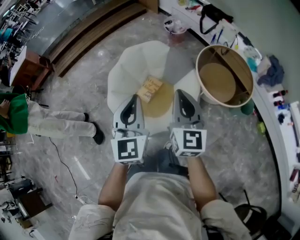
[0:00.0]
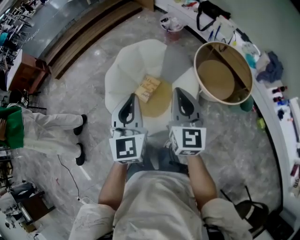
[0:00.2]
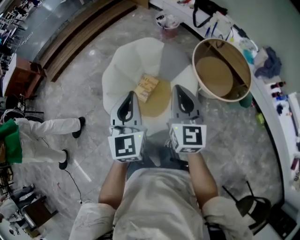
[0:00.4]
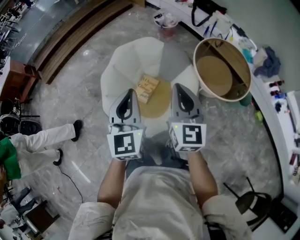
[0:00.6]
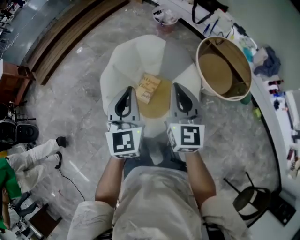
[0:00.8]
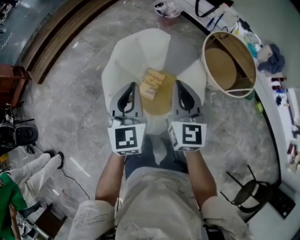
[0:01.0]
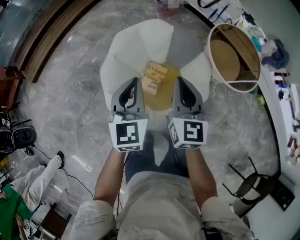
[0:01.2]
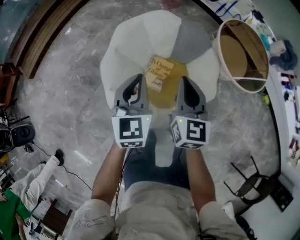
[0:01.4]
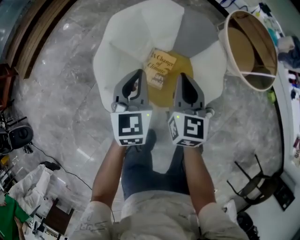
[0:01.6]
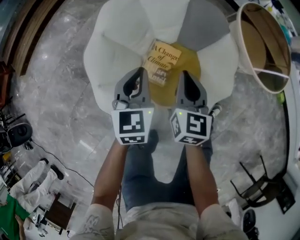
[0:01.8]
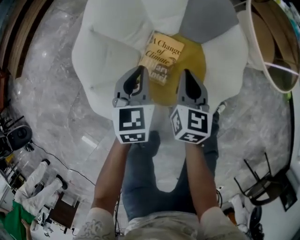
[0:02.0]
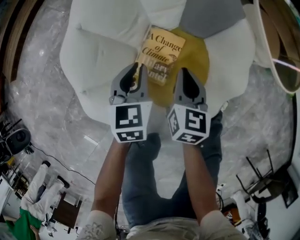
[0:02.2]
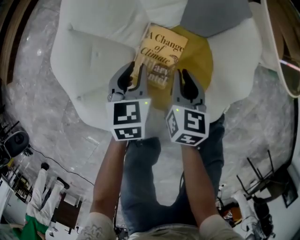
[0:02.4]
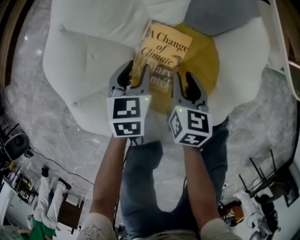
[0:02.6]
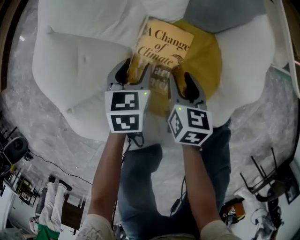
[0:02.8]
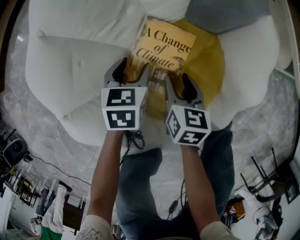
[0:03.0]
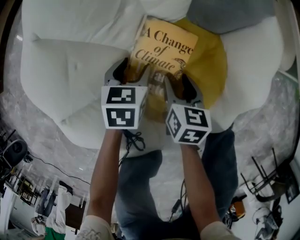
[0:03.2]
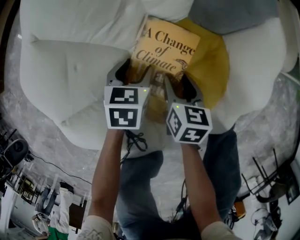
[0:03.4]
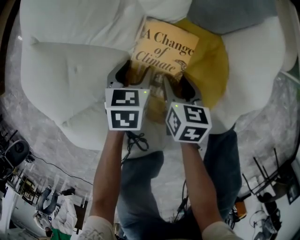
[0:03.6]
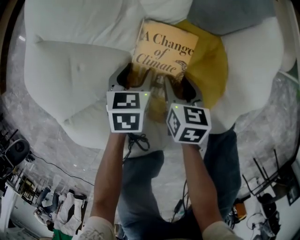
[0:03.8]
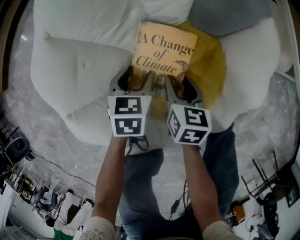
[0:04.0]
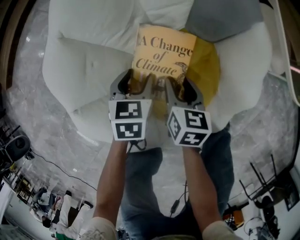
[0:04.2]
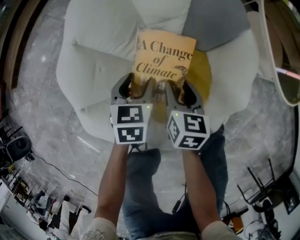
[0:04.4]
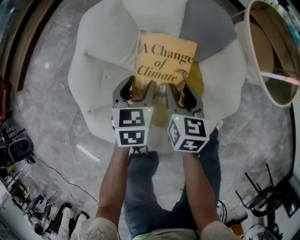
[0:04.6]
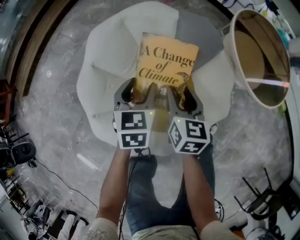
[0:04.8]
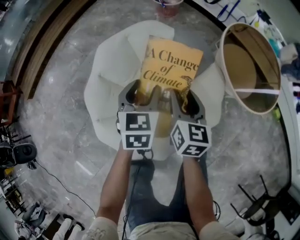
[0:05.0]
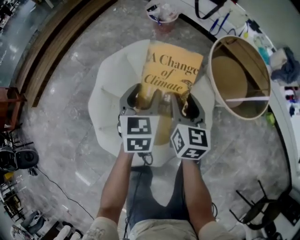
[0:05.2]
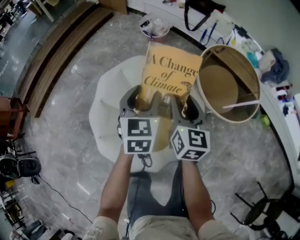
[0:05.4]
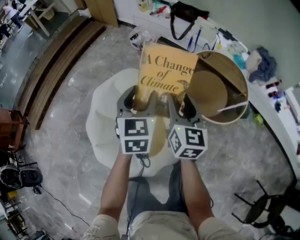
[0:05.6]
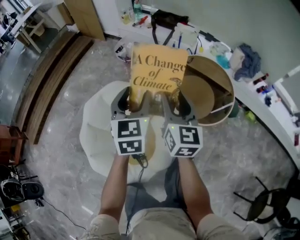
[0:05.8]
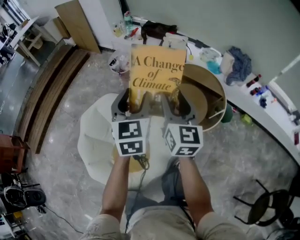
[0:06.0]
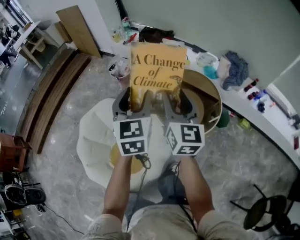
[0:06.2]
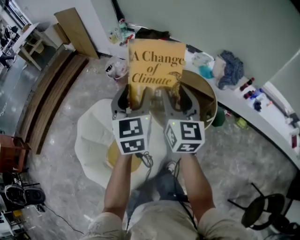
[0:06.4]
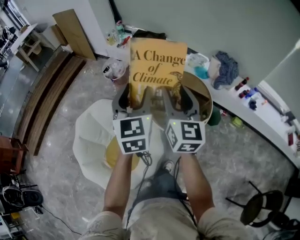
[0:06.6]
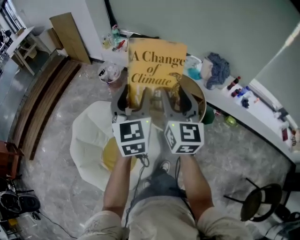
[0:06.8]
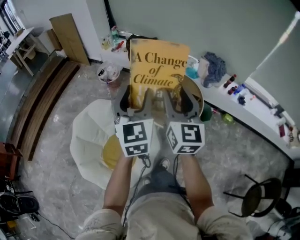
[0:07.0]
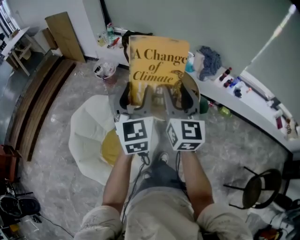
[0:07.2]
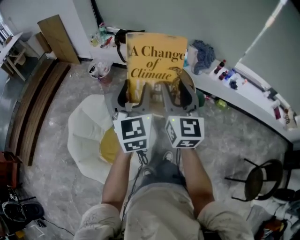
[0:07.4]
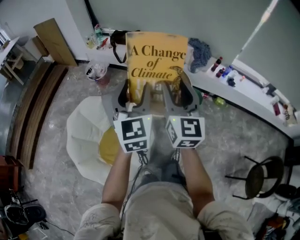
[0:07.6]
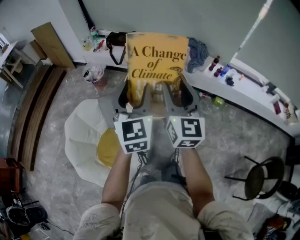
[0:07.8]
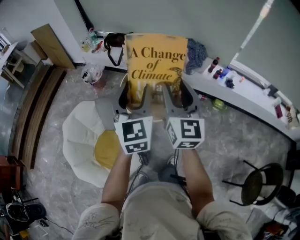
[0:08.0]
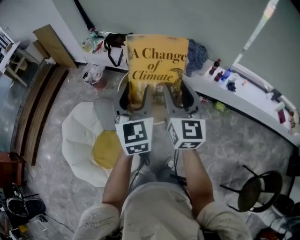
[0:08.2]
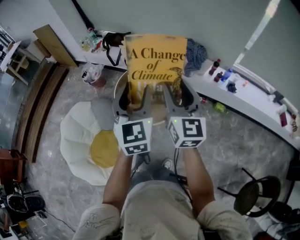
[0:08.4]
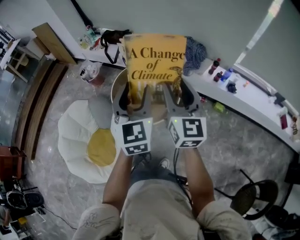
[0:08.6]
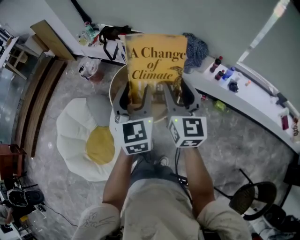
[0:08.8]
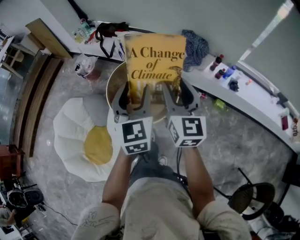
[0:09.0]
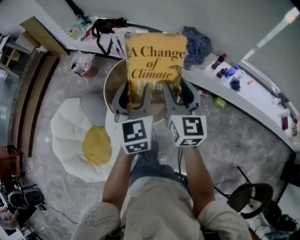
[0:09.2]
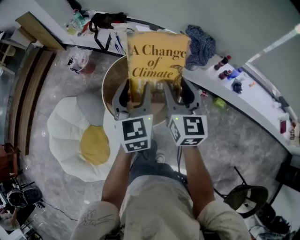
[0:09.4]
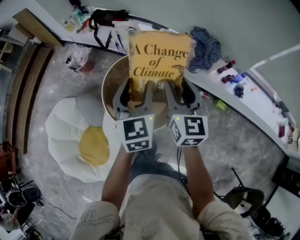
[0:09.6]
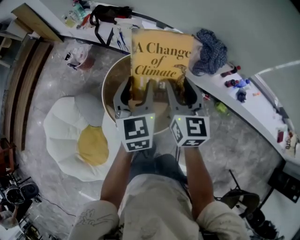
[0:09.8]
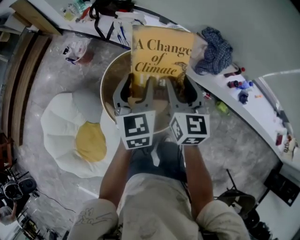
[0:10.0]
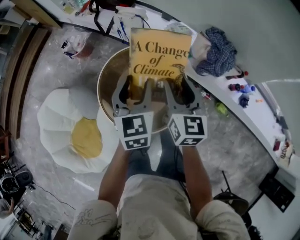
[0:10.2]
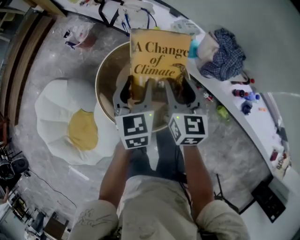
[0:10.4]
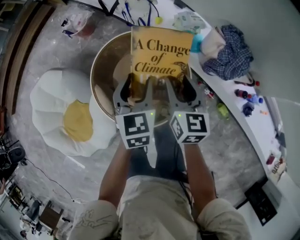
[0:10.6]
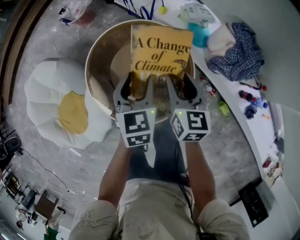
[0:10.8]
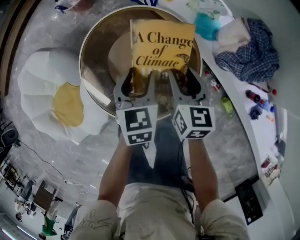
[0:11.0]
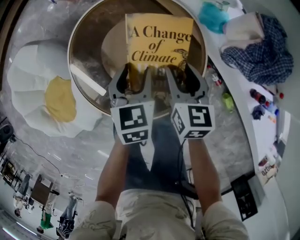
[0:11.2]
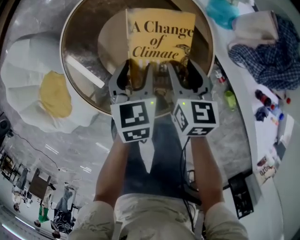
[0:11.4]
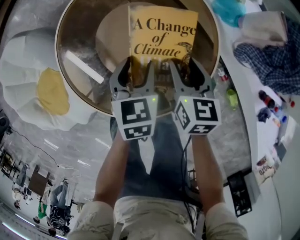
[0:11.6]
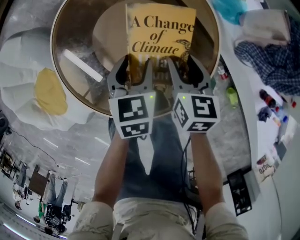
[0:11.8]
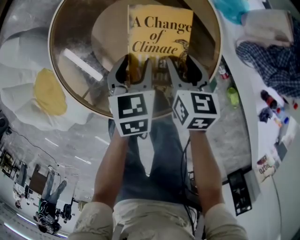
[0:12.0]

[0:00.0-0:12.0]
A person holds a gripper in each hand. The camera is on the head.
0:00.0 to 0:01.6: The right gripper heads downward, to the left and forward, covering approximately 40 cm, and rotates about 20 degrees; the left gripper heads downward, forward and to the left, covering some 40 cm, and turns by approximately 20 degrees.
0:01.6 to 0:03.0: Both grippers travel together downward, some 40 cm. The left gripper turns by approximately 30 degrees, and opens; the right gripper turns by approximately 30 degrees, and opens.
0:03.0 to 0:04.4: The grippers both shift upward by roughly 15 cm.
0:04.4 to 0:06.0: The two grippers go roughly 70 cm upward and to the right. The right gripper angles its fingers upward, by approximately 40 degrees. The left gripper tips its fingers upward by some 30 degrees.
0:06.0 to 0:07.6: The left gripper is displaced to the right, upward and backward by approximately 25 cm. The right gripper heads backward, upward and to the right, covering some 25 cm.
0:07.6 to 0:09.0: Both grippers travel together to the right and forward, some 30 cm.
0:09.0 to 0:10.4: Both grippers move forward and downward, about 30 cm. The left gripper swivels about 20 degrees; the right gripper turns by some 20 degrees.
0:10.4 to 0:12.0: The two grippers go approximately 35 cm downward. The left gripper swivels about 30 degrees; the right gripper swivels roughly 30 degrees.

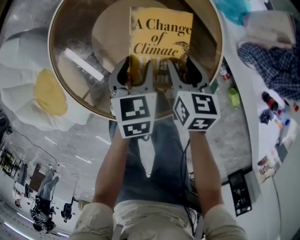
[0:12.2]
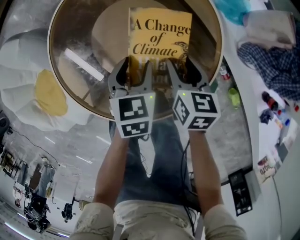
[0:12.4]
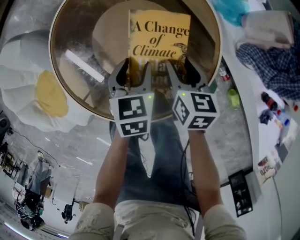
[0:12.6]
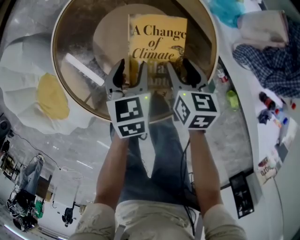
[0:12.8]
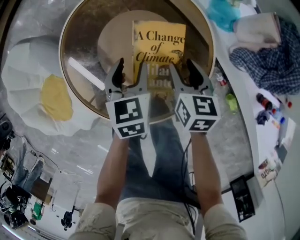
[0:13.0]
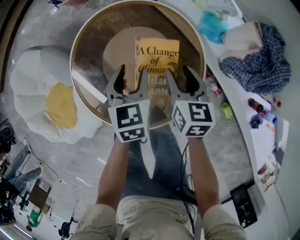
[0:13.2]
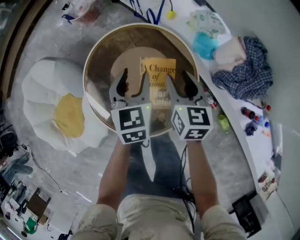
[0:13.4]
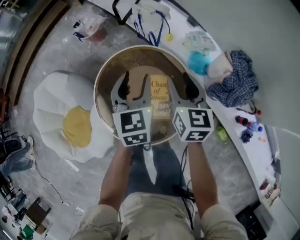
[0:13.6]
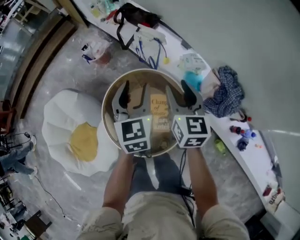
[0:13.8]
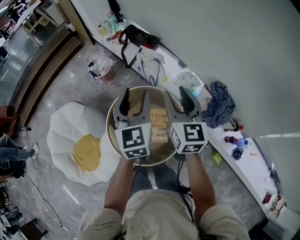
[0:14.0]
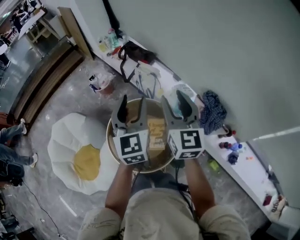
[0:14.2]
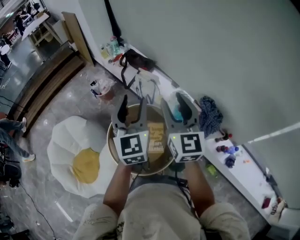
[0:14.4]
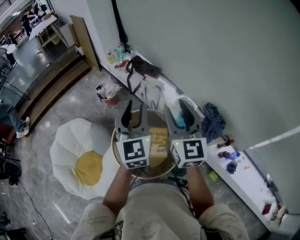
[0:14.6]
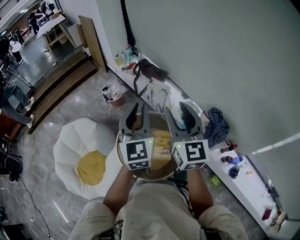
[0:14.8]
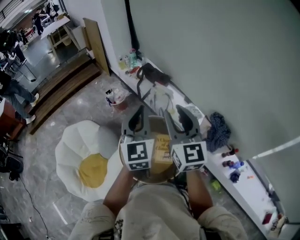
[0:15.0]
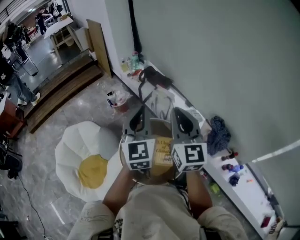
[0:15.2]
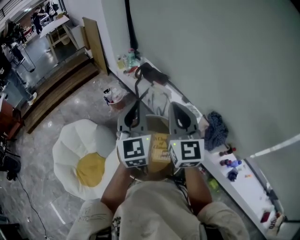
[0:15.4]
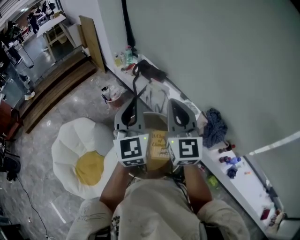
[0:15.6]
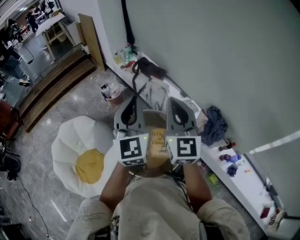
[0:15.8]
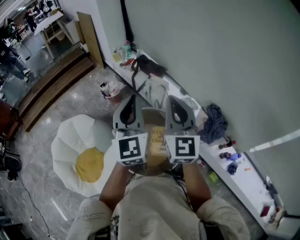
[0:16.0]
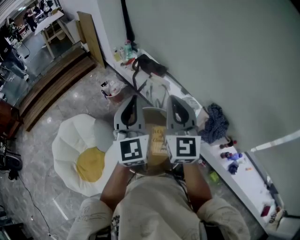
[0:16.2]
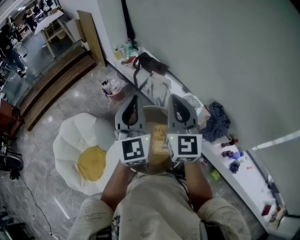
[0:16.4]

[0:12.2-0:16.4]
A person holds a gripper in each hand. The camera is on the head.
0:12.2 to 0:13.6: Both grippers move upward, approximately 30 cm. The right gripper swivels roughly 30 degrees. Meanwhile the left gripper turns by about 30 degrees.
0:13.6 to 0:15.0: Both grippers move upward, roughly 35 cm. The left gripper swivels about 30 degrees, and closes; the right gripper tilts its fingers roughly 30 degrees upward.
0:15.0 to 0:16.4: The right gripper closes its fingers.

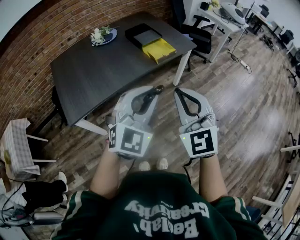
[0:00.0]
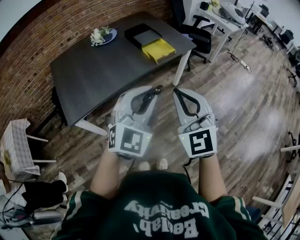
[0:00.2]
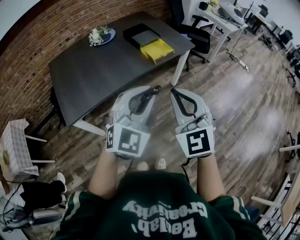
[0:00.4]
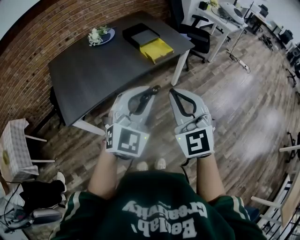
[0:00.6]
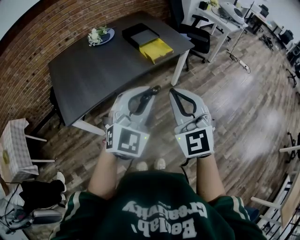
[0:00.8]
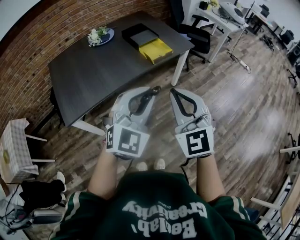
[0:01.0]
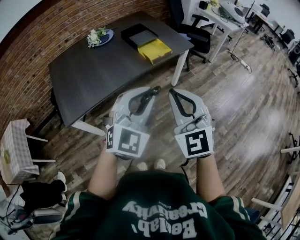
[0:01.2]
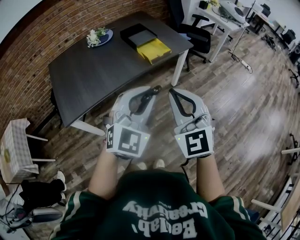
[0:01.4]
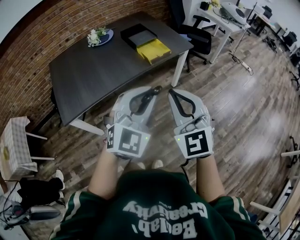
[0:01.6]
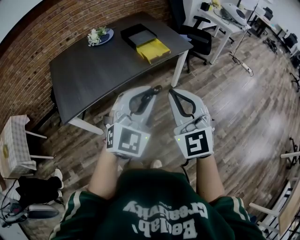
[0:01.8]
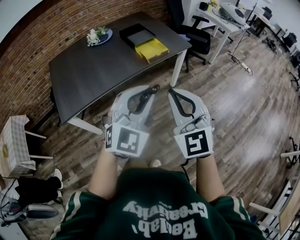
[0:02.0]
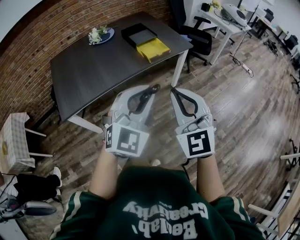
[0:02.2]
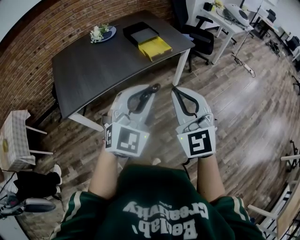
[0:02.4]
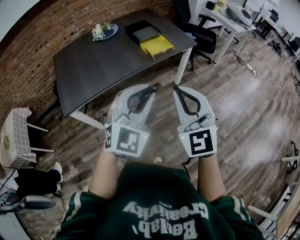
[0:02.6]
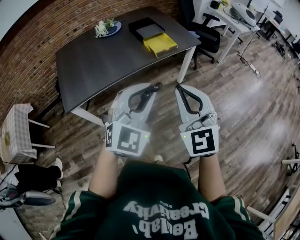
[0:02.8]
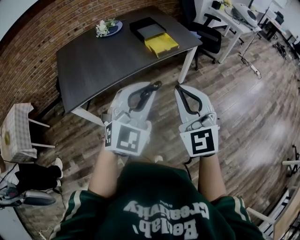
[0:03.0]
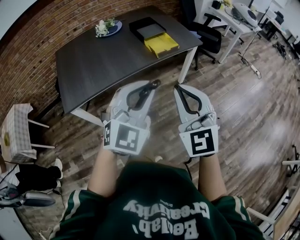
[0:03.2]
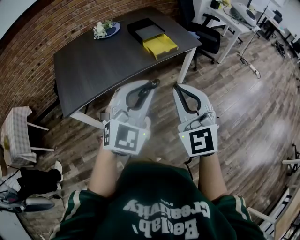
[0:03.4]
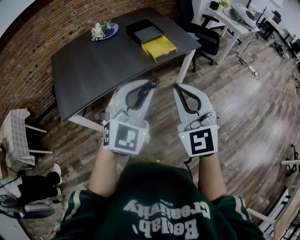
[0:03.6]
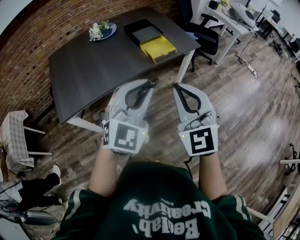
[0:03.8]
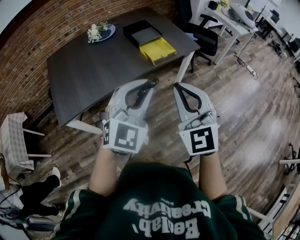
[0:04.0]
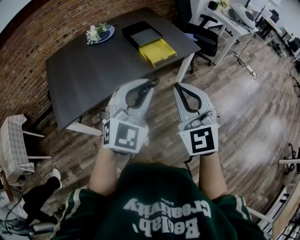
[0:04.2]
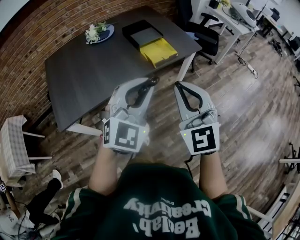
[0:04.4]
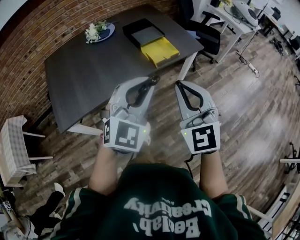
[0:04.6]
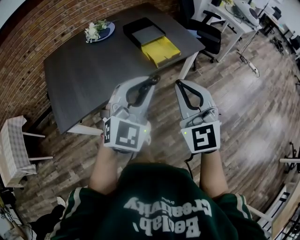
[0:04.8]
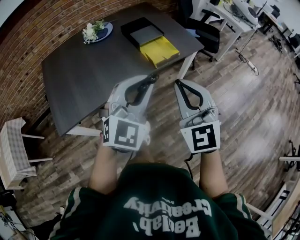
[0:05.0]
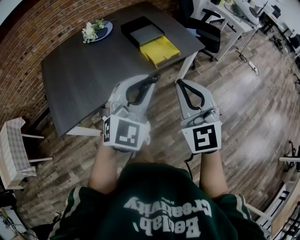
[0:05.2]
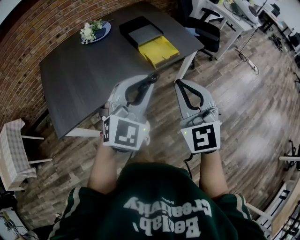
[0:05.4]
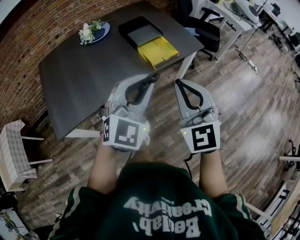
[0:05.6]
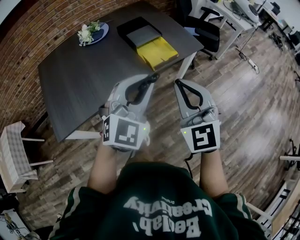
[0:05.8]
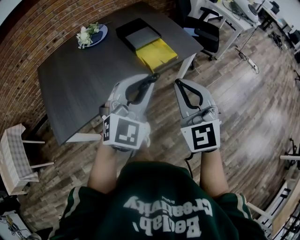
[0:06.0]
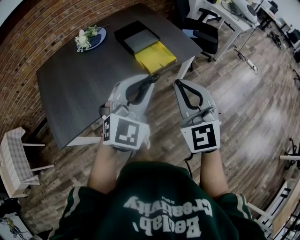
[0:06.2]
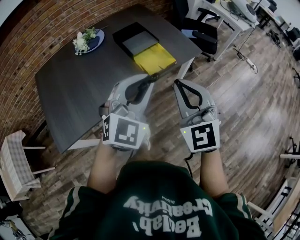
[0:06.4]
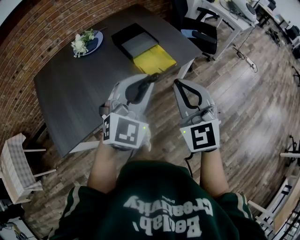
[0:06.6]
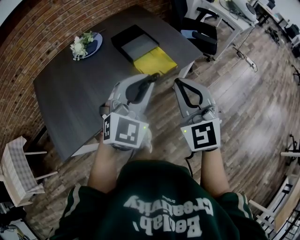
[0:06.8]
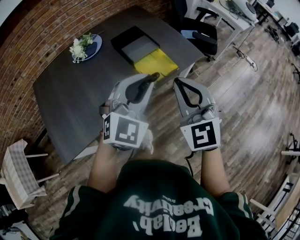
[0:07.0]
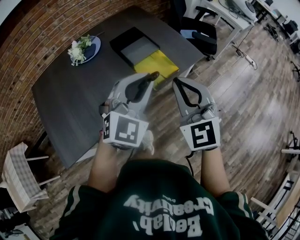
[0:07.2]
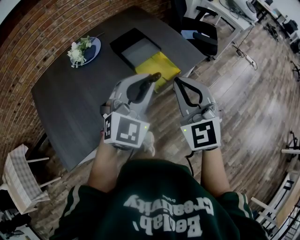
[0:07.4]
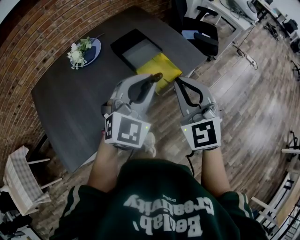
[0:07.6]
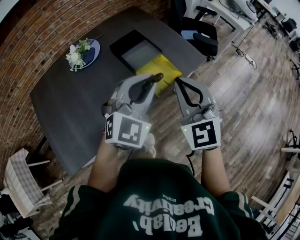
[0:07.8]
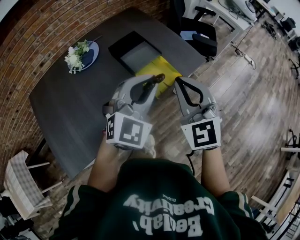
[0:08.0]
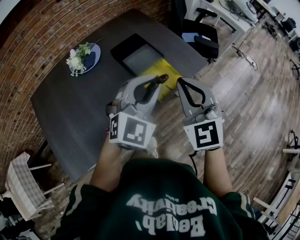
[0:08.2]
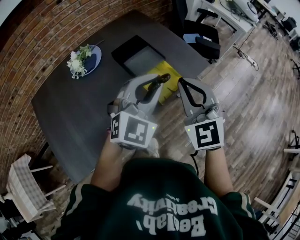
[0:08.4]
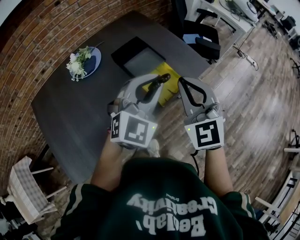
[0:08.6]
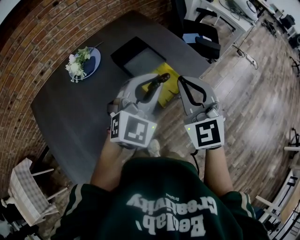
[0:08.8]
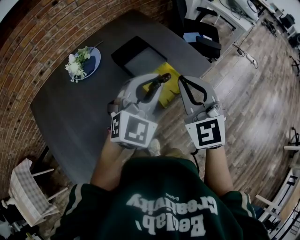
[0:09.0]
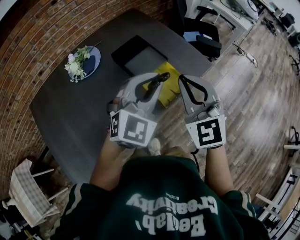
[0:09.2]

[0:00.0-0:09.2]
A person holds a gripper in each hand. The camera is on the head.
0:00.0 to 0:01.6: The two grippers go some 5 cm to the right.
0:01.6 to 0:03.0: The grippers move only a little.
0:03.0 to 0:04.6: The two grippers go some 15 cm forward.
0:04.6 to 0:06.2: Both grippers move forward, some 10 cm.
0:06.2 to 0:07.6: Both grippers travel together forward, some 15 cm.
0:07.6 to 0:09.2: The grippers both shift forward by roughly 10 cm.
